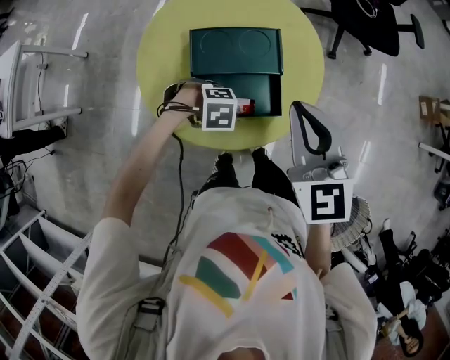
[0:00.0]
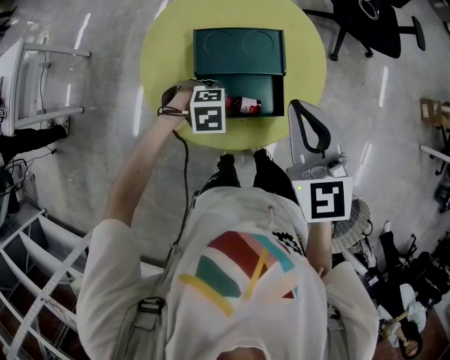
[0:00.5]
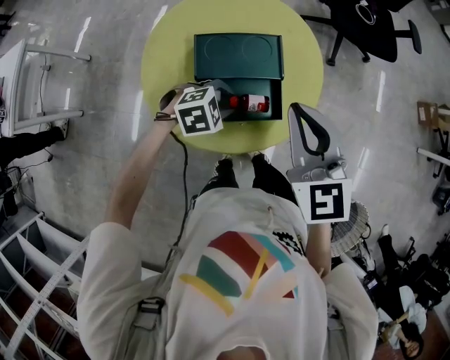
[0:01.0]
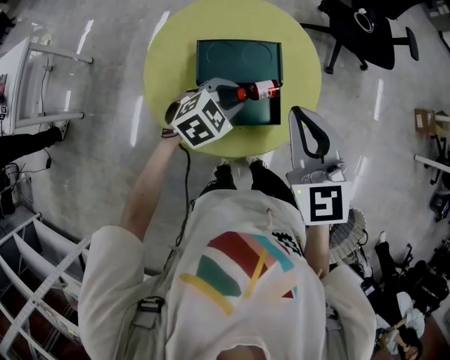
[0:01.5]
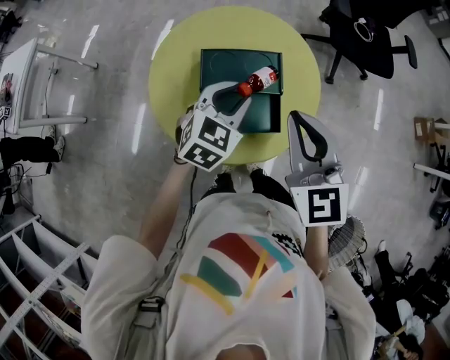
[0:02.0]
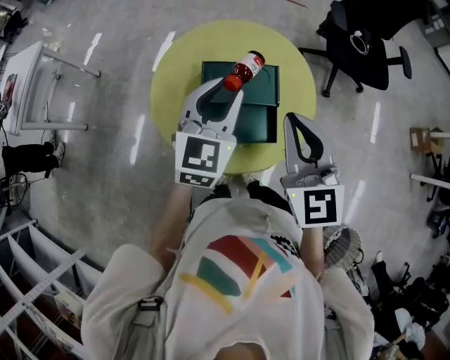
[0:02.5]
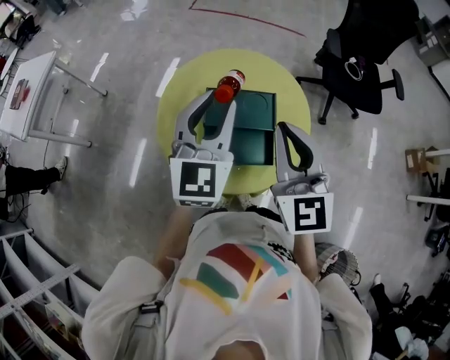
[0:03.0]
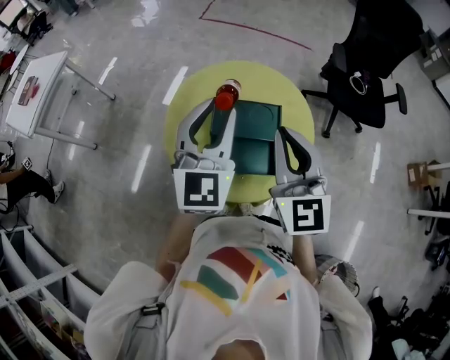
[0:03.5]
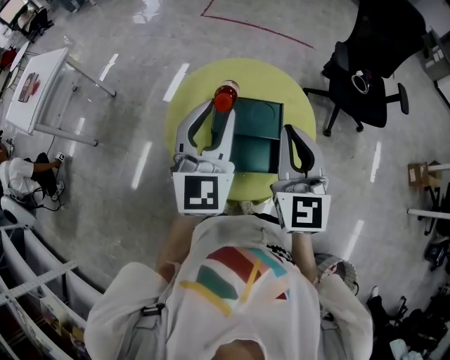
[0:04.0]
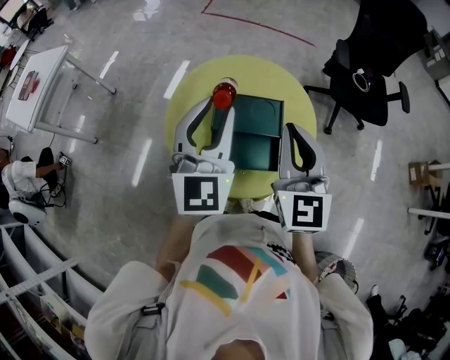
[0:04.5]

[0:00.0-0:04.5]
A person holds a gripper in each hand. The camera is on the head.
0:00.0 to 0:02.0: The left gripper moves upward, about 20 cm, and tips its fingers upward by approximately 50 degrees.
0:02.0 to 0:04.5: The right gripper moves upward, some 5 cm, while the left gripper travels upward by some 20 cm, and tilts its fingers about 30 degrees upward.

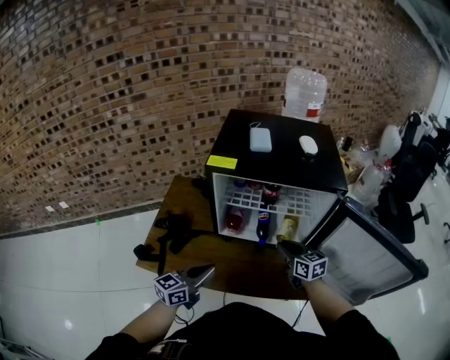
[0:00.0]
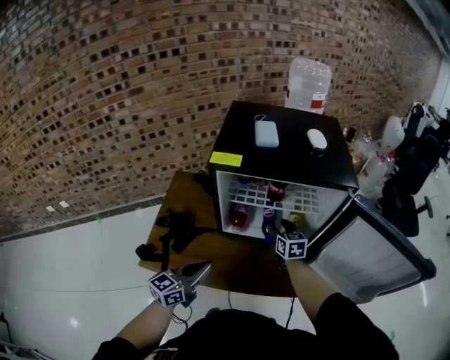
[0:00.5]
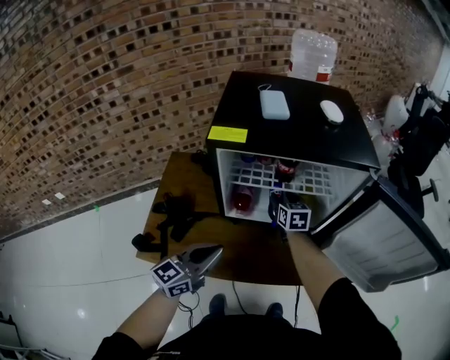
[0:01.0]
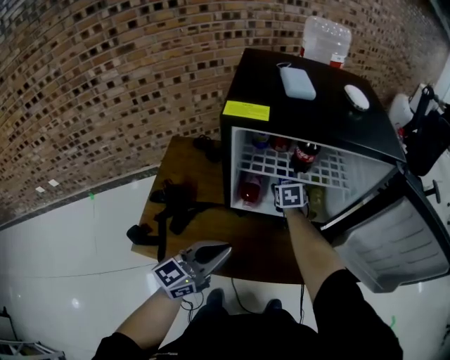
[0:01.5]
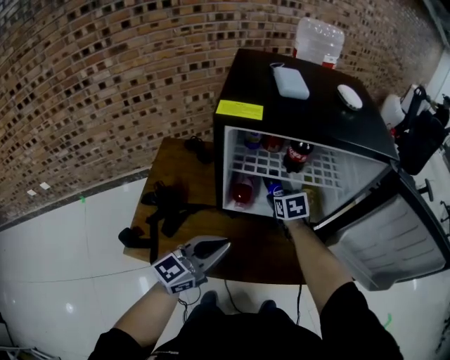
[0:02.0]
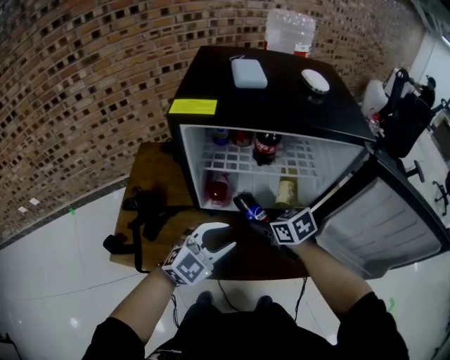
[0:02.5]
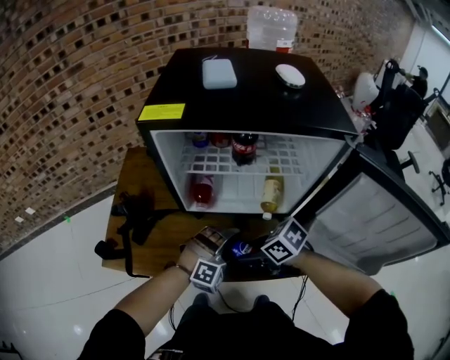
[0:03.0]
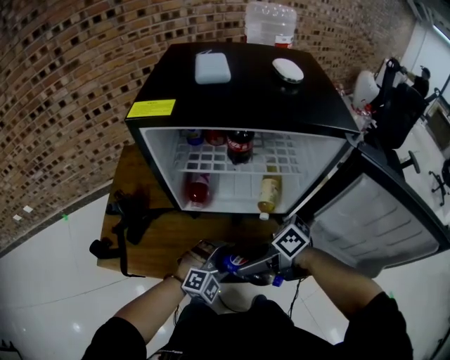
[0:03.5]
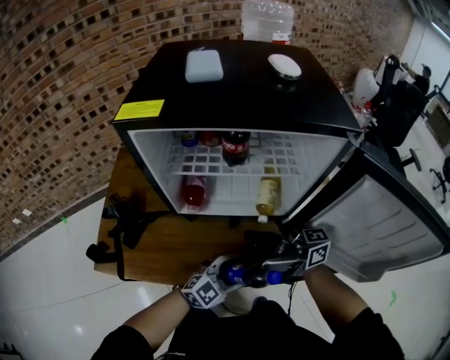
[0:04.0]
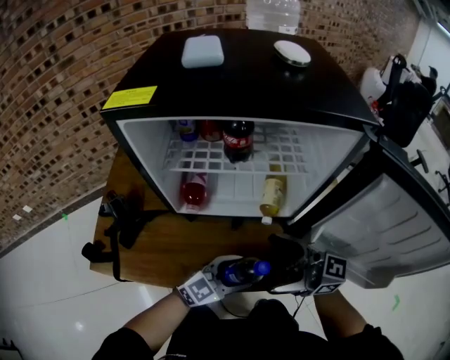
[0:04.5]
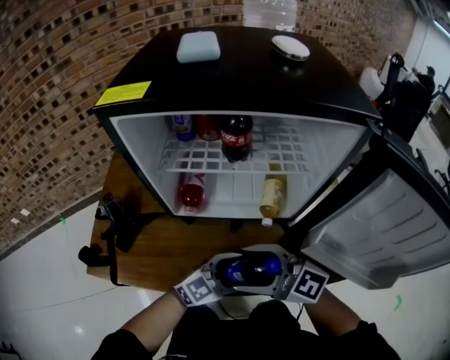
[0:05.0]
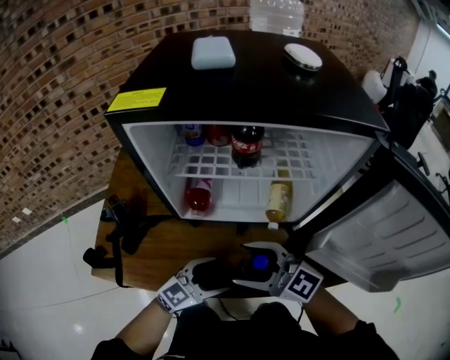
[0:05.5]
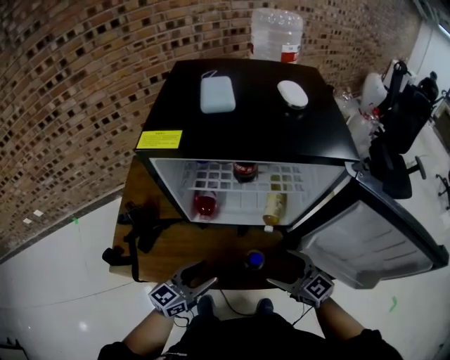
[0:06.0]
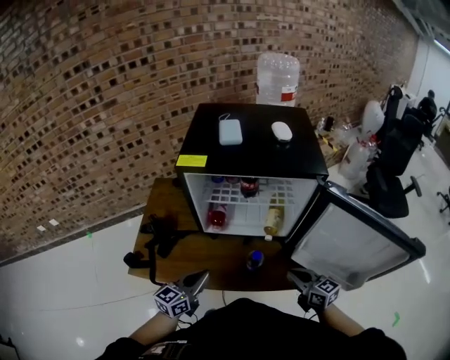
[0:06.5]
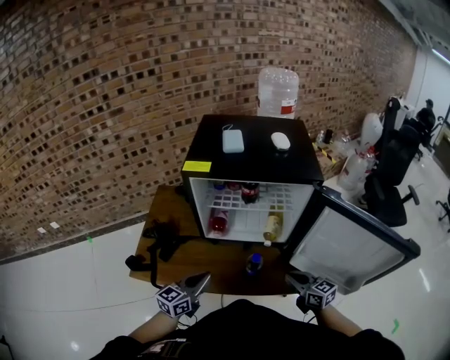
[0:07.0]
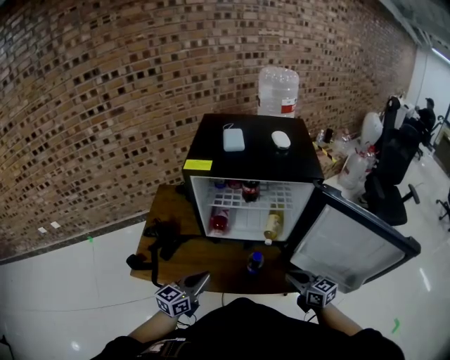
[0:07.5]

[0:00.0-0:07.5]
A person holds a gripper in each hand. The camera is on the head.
0:00.0 to 0:02.0: The left gripper travels forward by roughly 5 cm. Meanwhile the right gripper shifts roughly 20 cm forward, downward and to the left, and swivels roughly 30 degrees.
0:02.0 to 0:04.0: The left gripper moves roughly 25 cm, turns by approximately 40 degrees, and opens its fingers; the right gripper ends up some 25 cm from where it was, tips its fingers upward by some 70 degrees, and opens up.
0:04.0 to 0:05.5: The right gripper travels downward by some 5 cm, and twists roughly 50 degrees counterclockwise, seen from behind, while the left gripper shifts by roughly 10 cm.
0:05.5 to 0:07.5: The left gripper shifts some 20 cm upward, swivels some 30 degrees, and closes its fingers, while the right gripper changes place by about 20 cm, turns by about 40 degrees, and closes up.

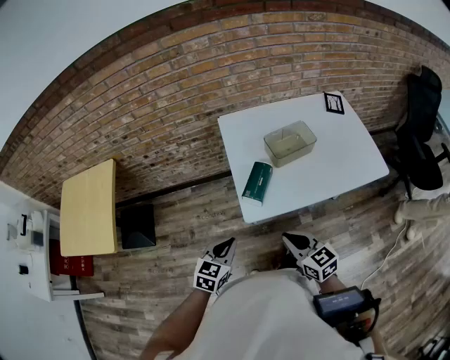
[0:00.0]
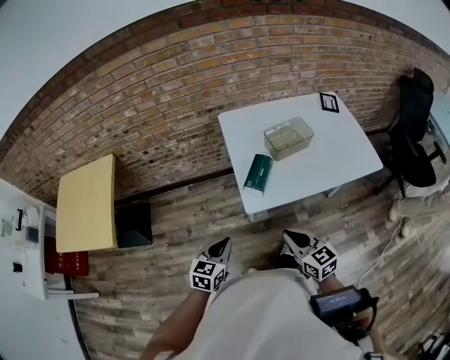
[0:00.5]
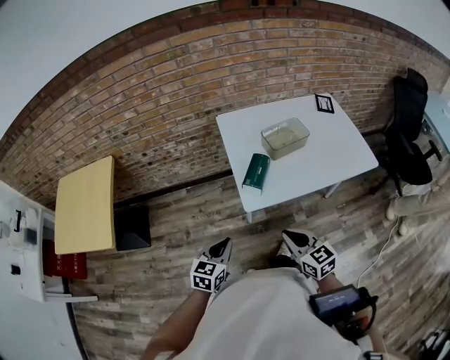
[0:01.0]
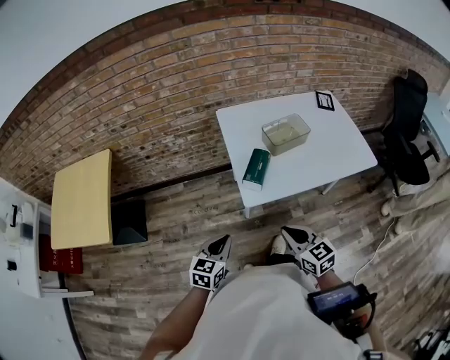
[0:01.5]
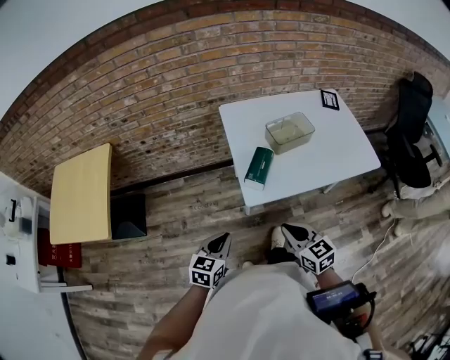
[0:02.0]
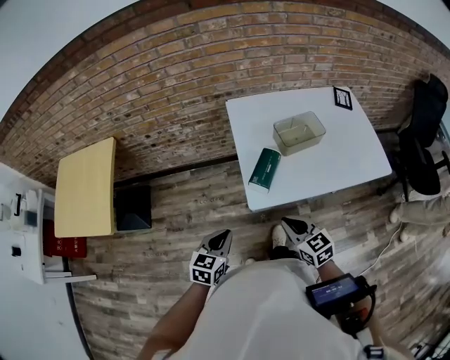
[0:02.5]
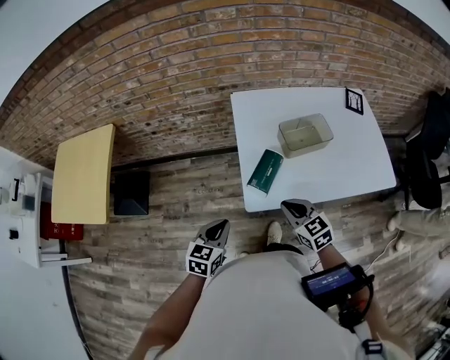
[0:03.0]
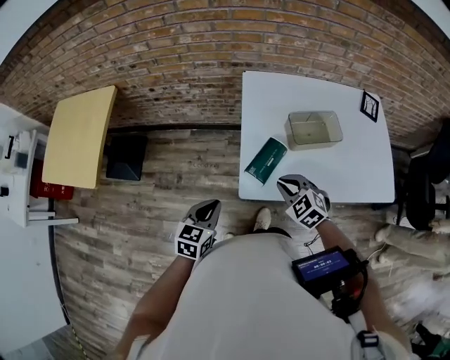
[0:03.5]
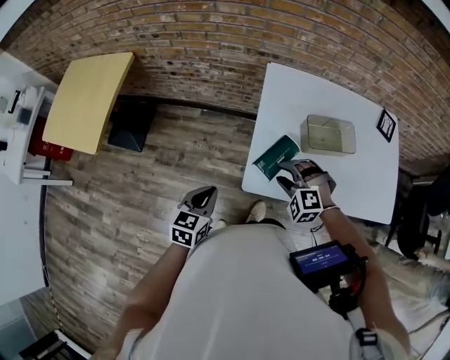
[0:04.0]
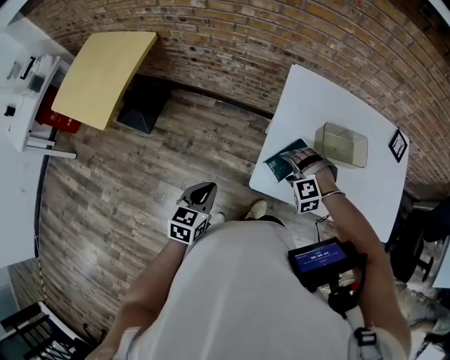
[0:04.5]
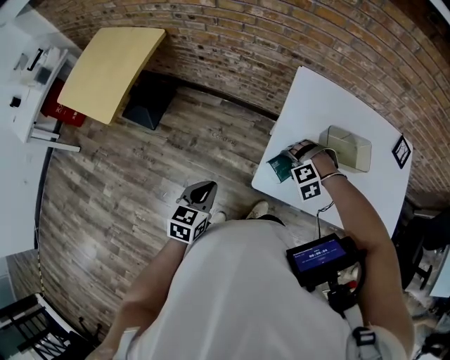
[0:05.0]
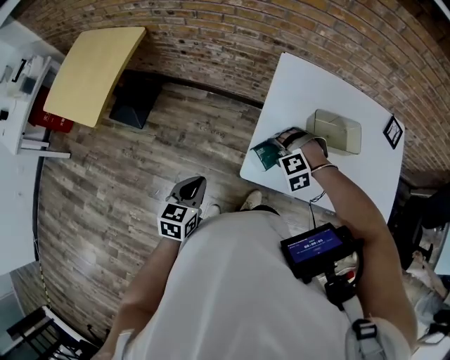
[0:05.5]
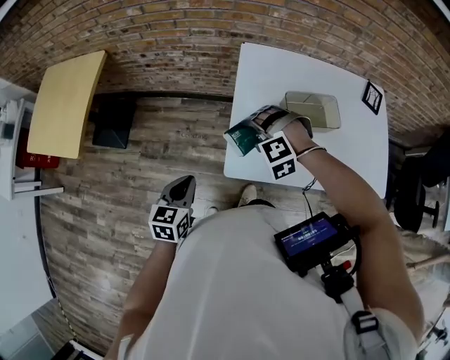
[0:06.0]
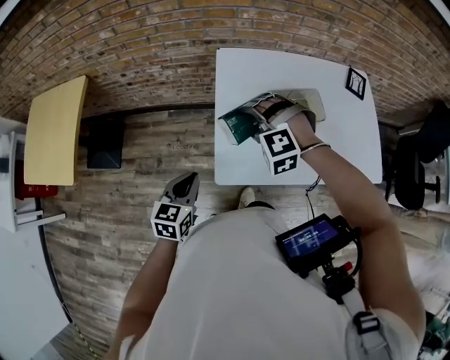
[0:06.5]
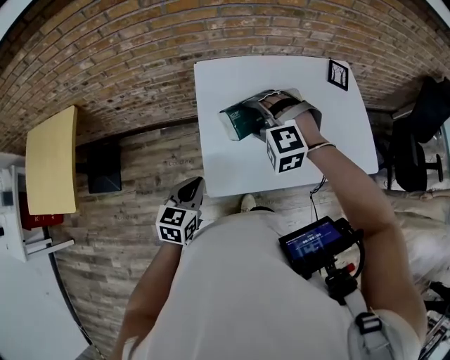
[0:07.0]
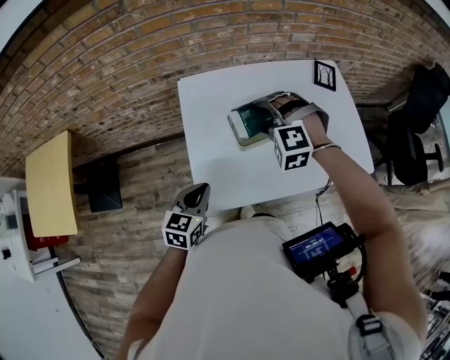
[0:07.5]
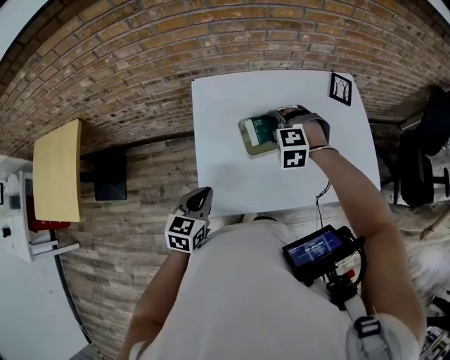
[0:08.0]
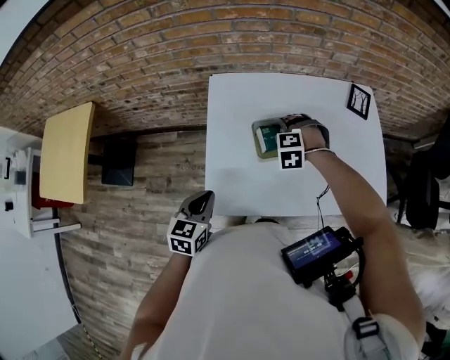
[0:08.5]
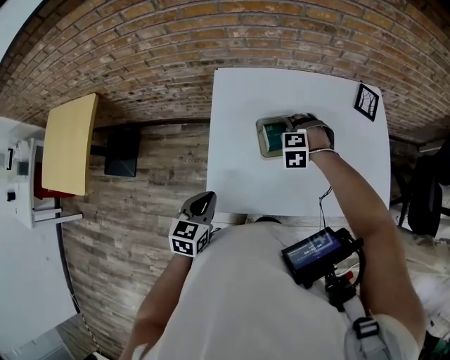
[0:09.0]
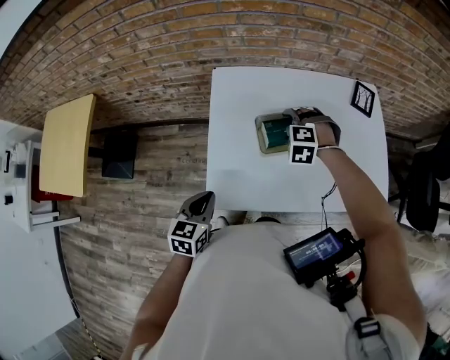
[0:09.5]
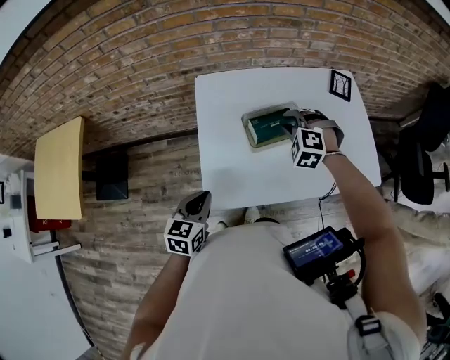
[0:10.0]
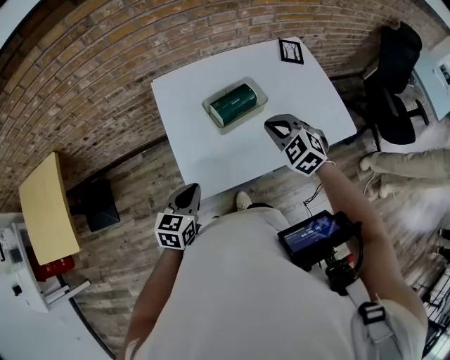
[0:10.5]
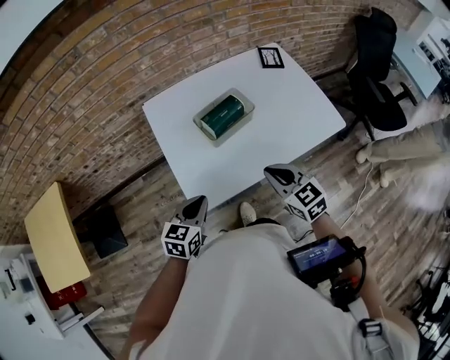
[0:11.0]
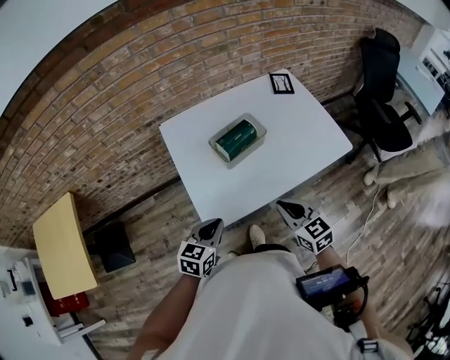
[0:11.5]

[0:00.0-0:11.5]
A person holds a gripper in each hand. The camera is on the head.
0:00.0 to 0:02.0: The left gripper changes place by roughly 5 cm.
0:02.0 to 0:04.0: The left gripper heads forward, covering about 10 cm, and swivels roughly 20 degrees, while the right gripper travels forward by roughly 20 cm, rolls counterclockwise, seen from behind, by roughly 80 degrees, and opens.
0:04.0 to 0:06.0: The right gripper reaches about 5 cm downward, then returns, swivels about 20 degrees, and opens.
0:06.0 to 0:07.5: The left gripper moves approximately 20 cm, and swivels about 20 degrees. Meanwhile the right gripper shifts by roughly 25 cm, and rotates about 30 degrees.
0:07.5 to 0:09.5: The right gripper is displaced downward by approximately 10 cm.
0:09.5 to 0:11.5: The left gripper ends up roughly 5 cm from where it was, and rotates about 30 degrees; the right gripper is displaced backward by approximately 30 cm, rolls clockwise, seen from behind, by approximately 80 degrees, and closes its fingers.

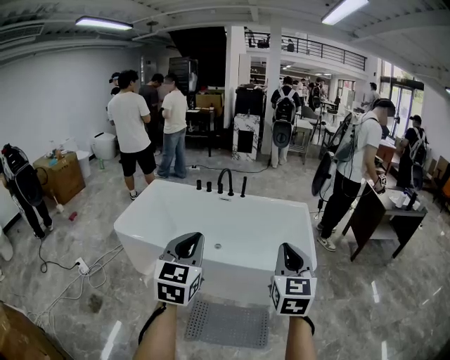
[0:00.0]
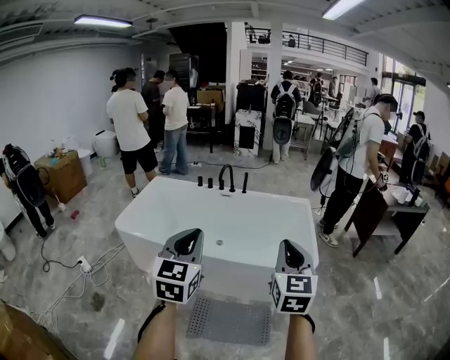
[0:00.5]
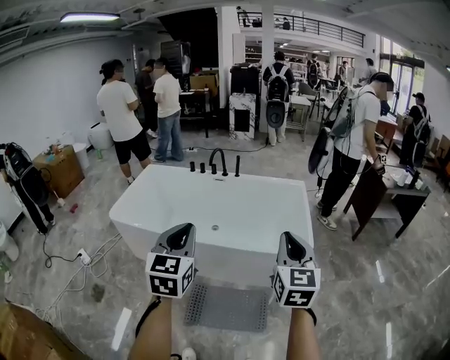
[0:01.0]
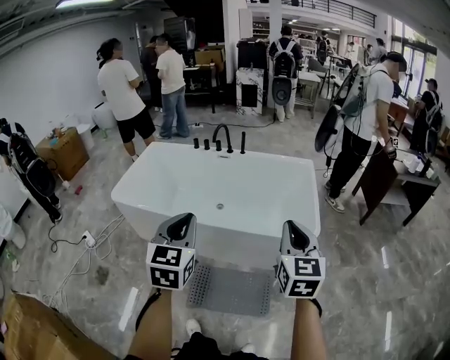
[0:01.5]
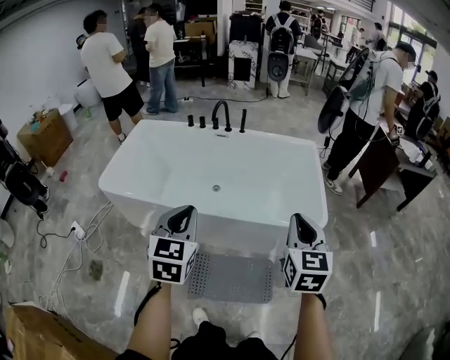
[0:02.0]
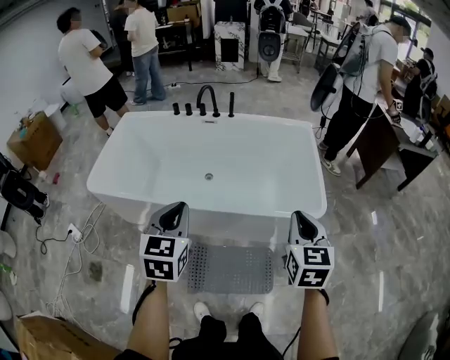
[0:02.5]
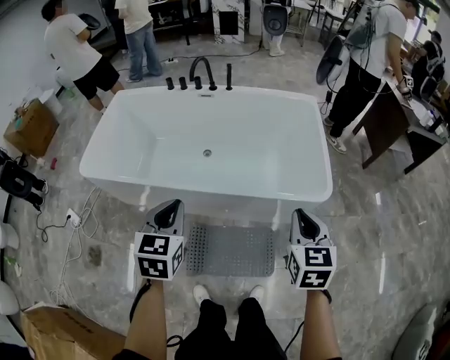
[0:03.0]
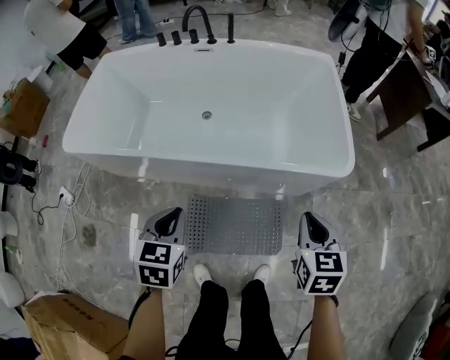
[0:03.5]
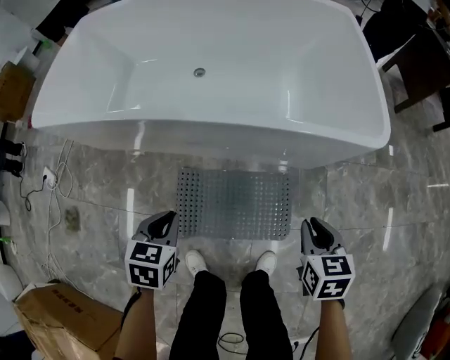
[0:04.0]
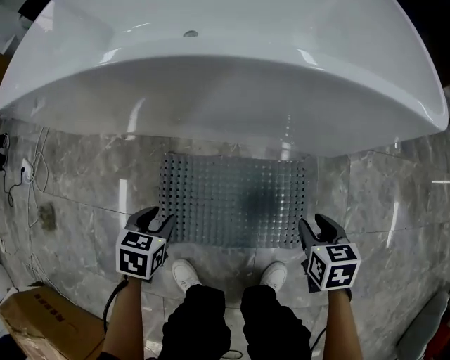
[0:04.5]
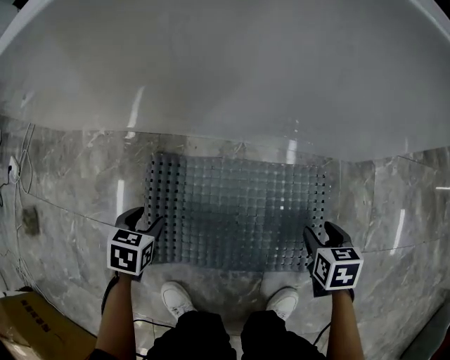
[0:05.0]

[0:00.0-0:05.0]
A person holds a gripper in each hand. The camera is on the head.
0:00.0 to 0:02.5: Both grippers travel together downward and forward, about 25 cm. The right gripper changes its angle by roughly 20 degrees.
0:02.5 to 0:05.0: Both grippers move downward, approximately 90 cm. The left gripper points its fingers some 50 degrees further downward, and opens up. Meanwhile the right gripper tips its fingers downward by approximately 40 degrees, and opens.
